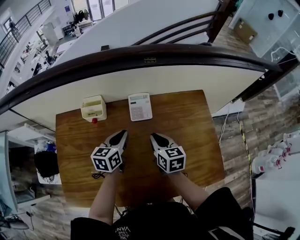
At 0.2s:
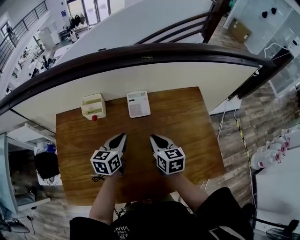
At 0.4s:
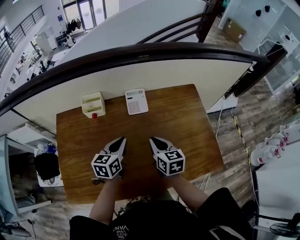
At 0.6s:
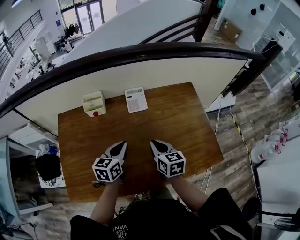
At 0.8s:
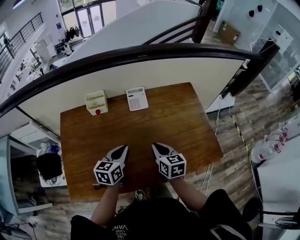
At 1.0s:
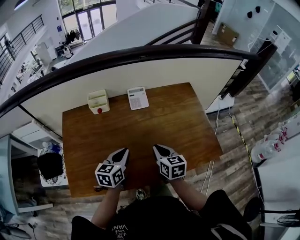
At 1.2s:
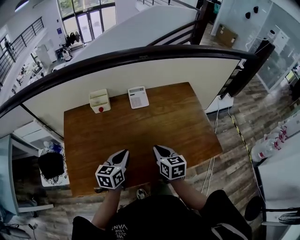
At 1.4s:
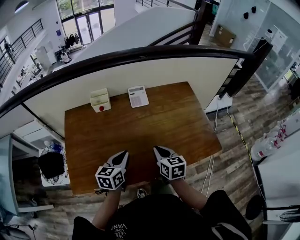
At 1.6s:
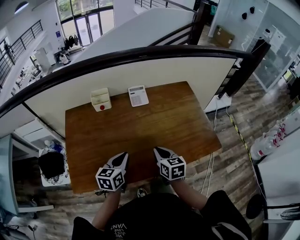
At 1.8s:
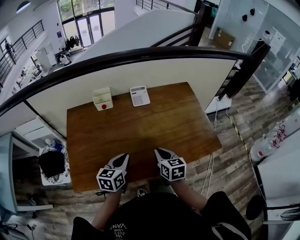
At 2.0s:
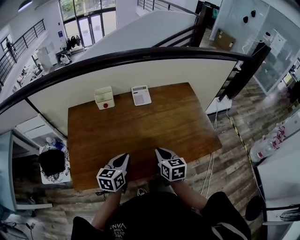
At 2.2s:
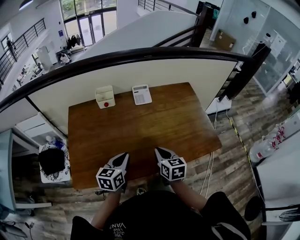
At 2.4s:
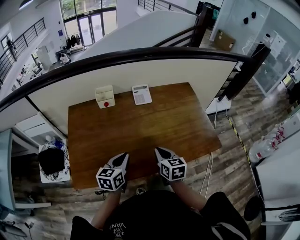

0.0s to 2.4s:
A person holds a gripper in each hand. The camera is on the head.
0.0s to 1.2s: The two grippers go some 20 cm backward.
1.2s to 2.4s: The two grippers go about 5 cm backward.

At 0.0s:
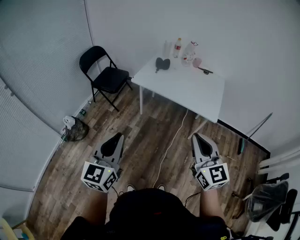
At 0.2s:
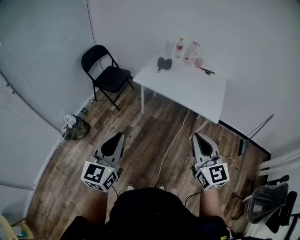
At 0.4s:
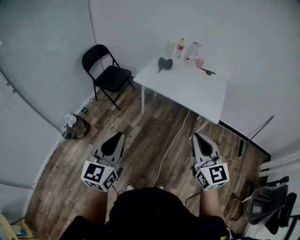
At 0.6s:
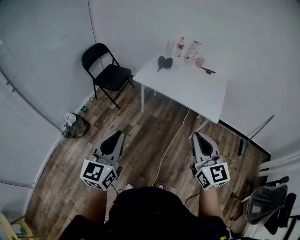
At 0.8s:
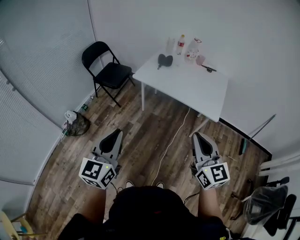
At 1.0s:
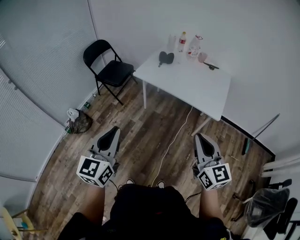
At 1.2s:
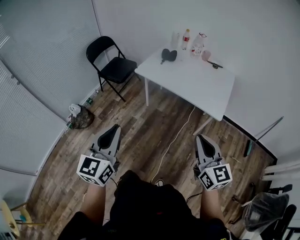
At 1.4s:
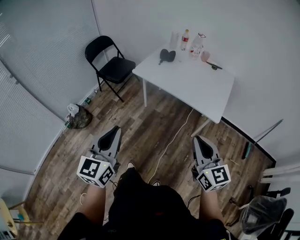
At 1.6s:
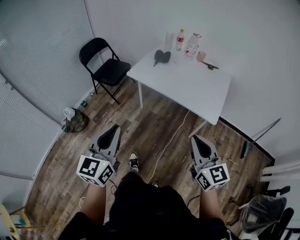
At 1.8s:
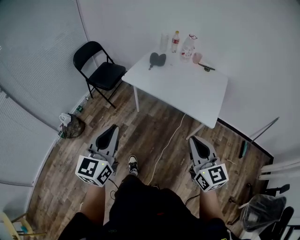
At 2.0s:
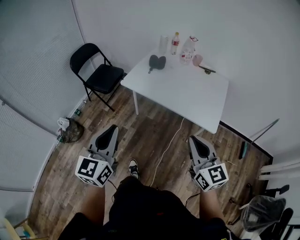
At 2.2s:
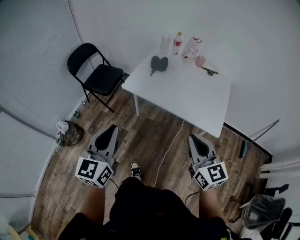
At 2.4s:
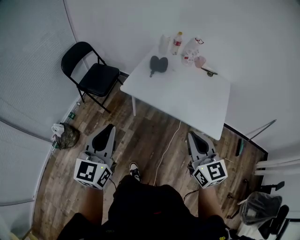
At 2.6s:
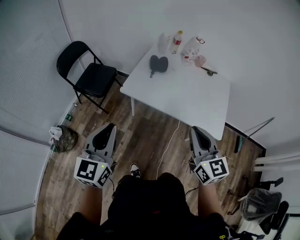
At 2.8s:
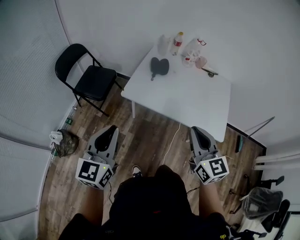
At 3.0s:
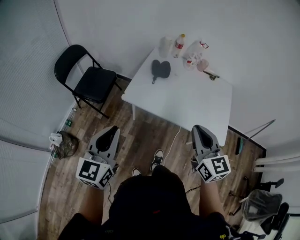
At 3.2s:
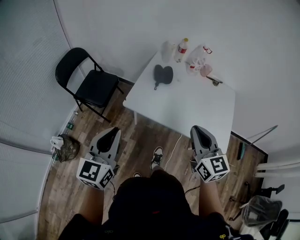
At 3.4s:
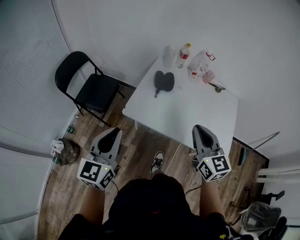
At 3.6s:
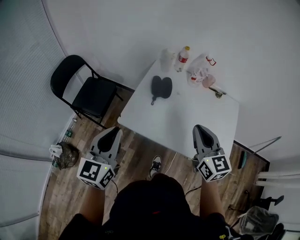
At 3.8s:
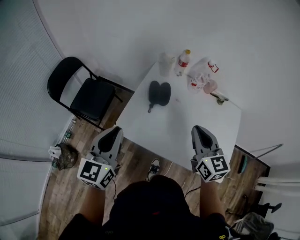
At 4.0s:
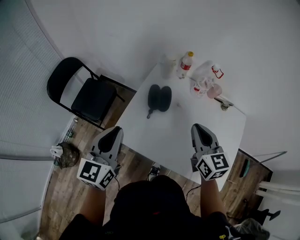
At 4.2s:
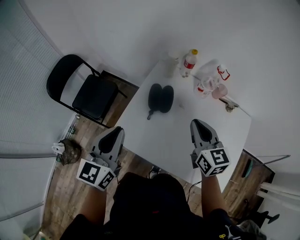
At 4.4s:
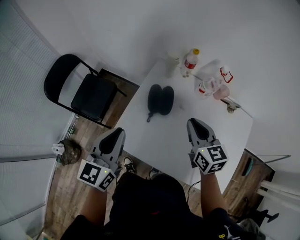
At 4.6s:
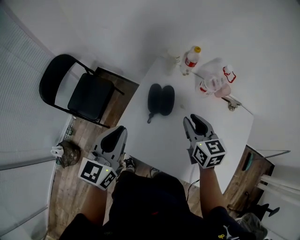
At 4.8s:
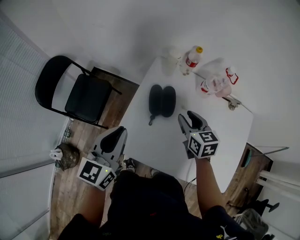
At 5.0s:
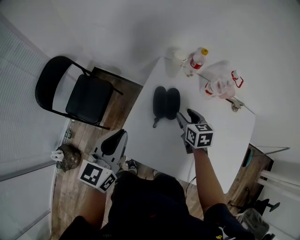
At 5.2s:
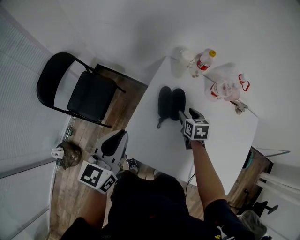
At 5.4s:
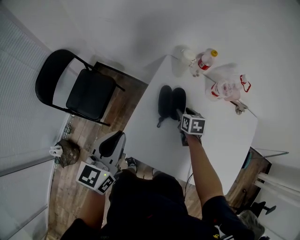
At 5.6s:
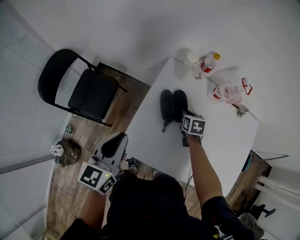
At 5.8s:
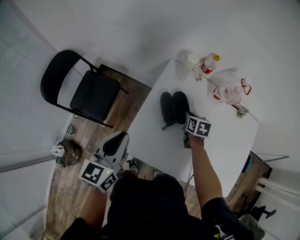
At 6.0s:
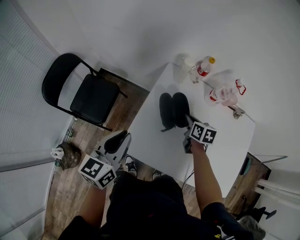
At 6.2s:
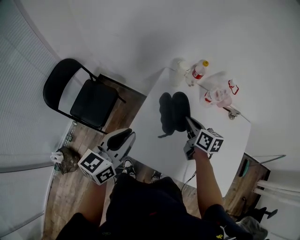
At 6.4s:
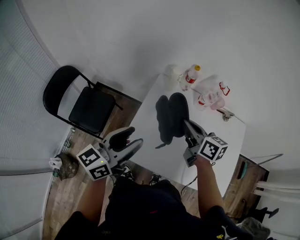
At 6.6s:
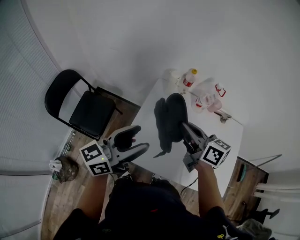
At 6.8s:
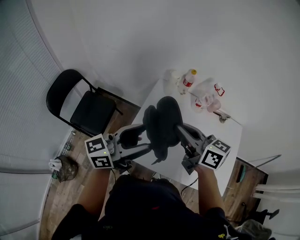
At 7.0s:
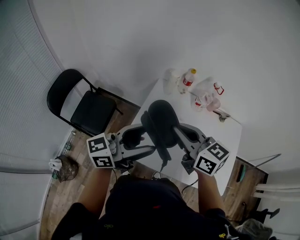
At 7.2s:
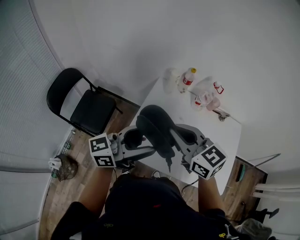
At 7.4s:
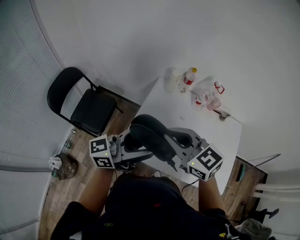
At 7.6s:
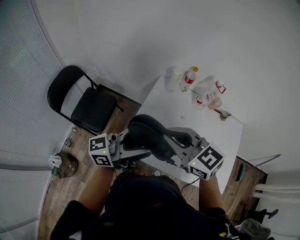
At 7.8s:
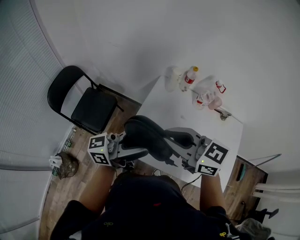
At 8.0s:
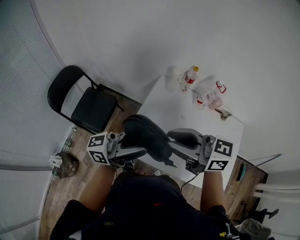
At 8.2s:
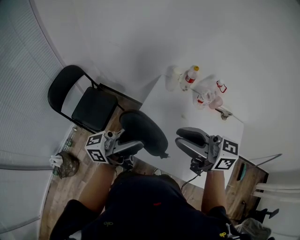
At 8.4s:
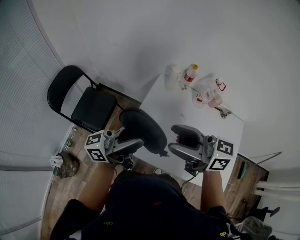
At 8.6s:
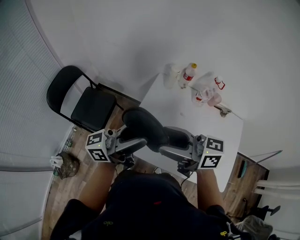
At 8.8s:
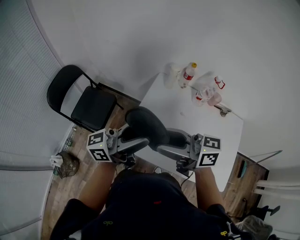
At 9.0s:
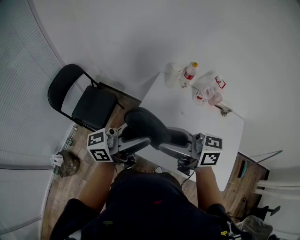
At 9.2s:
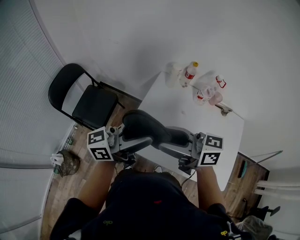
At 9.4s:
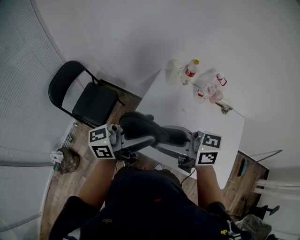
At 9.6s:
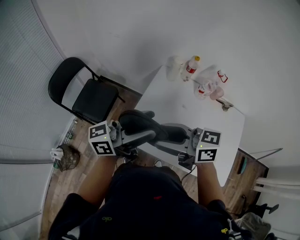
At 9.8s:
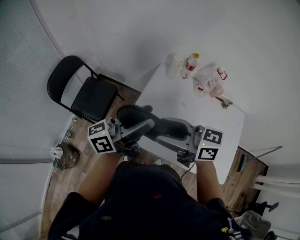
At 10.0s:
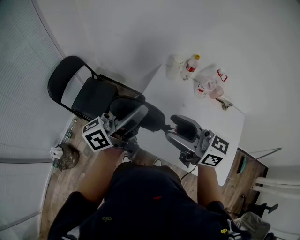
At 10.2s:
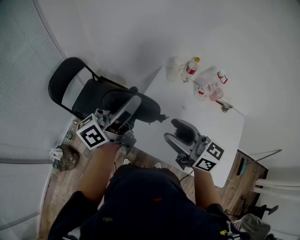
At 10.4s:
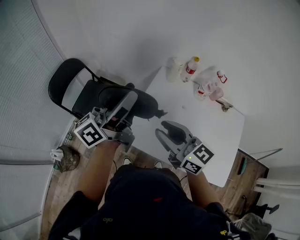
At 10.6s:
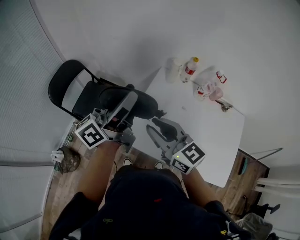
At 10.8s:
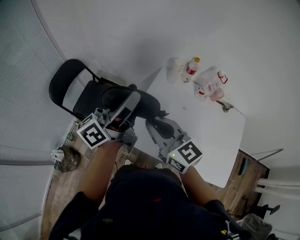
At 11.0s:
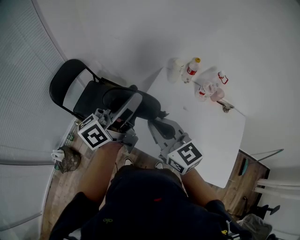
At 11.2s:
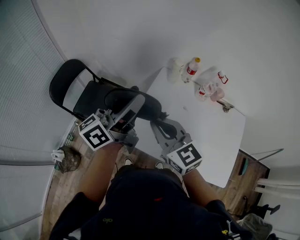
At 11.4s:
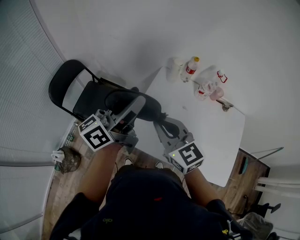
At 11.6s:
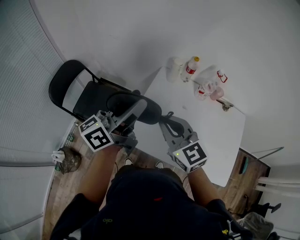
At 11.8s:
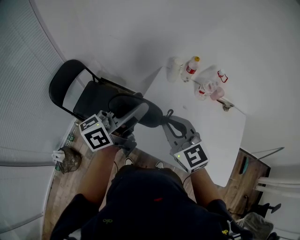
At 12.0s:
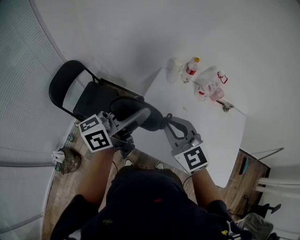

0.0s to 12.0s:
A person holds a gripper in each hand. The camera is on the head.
0.0s to 1.6s: The left gripper goes some 10 cm to the right and forward, while the right gripper moves to the right, downward and forward, roughly 15 cm.
1.6s to 3.0s: Both grippers travel together forward and to the left, approximately 35 cm.
3.0s to 4.4s: Both grippers travel together forward, some 40 cm.
4.4s to 6.0s: The left gripper travels to the left by about 5 cm. The right gripper is displaced downward and forward by some 20 cm, turns by about 30 degrees, and opens and closes again.
6.0s to 7.6s: The right gripper shifts about 35 cm upward and backward, and turns by approximately 60 degrees; the left gripper heads upward, to the right and backward, covering about 20 cm, points its fingers approximately 40 degrees further upward, and opens up.
7.6s to 9.0s: The right gripper changes its angle by roughly 40 degrees, and opens up.
9.0s to 10.4s: The left gripper shifts by approximately 10 cm, and changes its angle by about 20 degrees. Meanwhile the right gripper rotates about 30 degrees, and closes up.
10.4s to 12.0s: The left gripper shifts by roughly 5 cm; the right gripper swivels about 30 degrees, and closes.

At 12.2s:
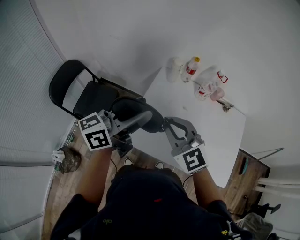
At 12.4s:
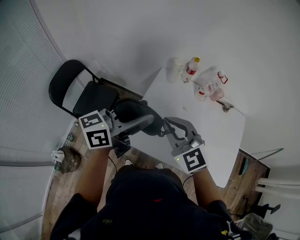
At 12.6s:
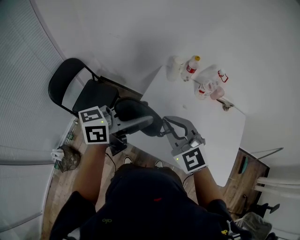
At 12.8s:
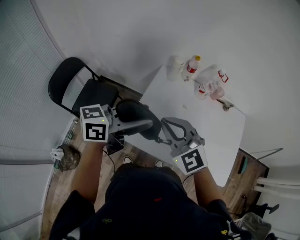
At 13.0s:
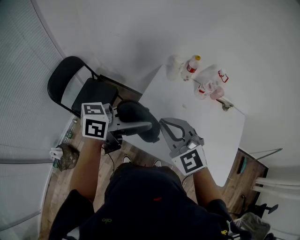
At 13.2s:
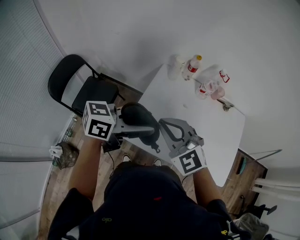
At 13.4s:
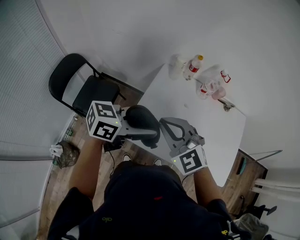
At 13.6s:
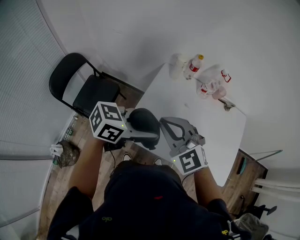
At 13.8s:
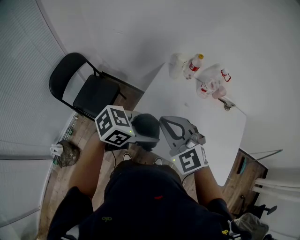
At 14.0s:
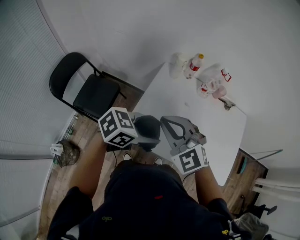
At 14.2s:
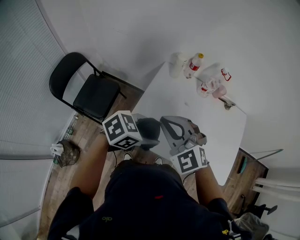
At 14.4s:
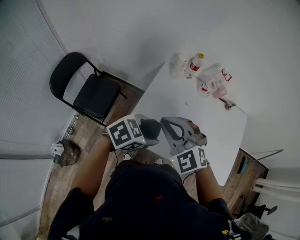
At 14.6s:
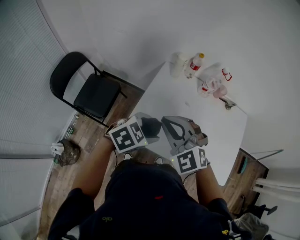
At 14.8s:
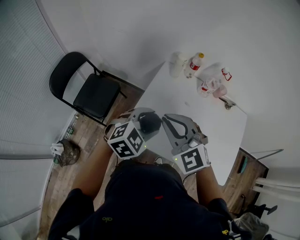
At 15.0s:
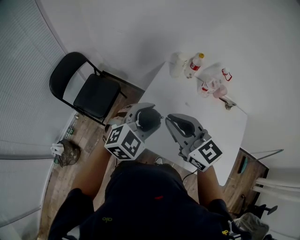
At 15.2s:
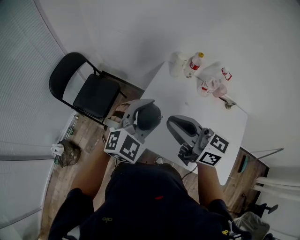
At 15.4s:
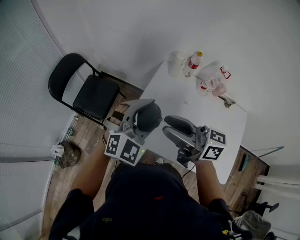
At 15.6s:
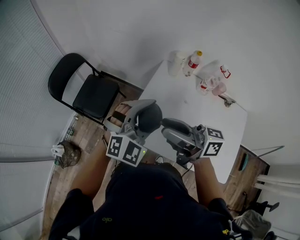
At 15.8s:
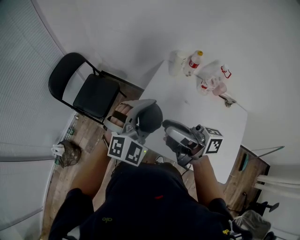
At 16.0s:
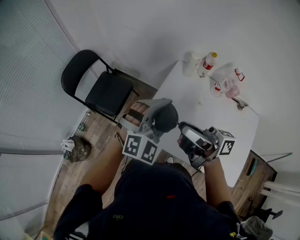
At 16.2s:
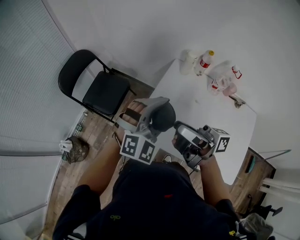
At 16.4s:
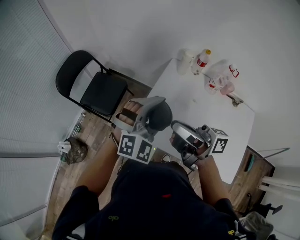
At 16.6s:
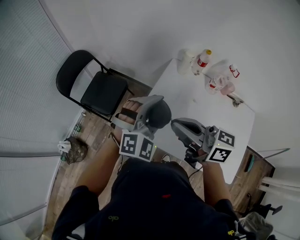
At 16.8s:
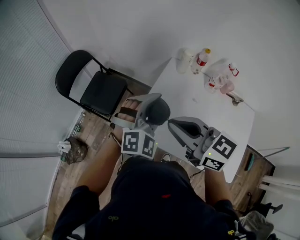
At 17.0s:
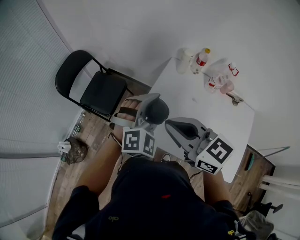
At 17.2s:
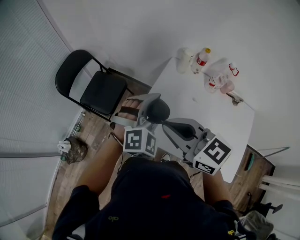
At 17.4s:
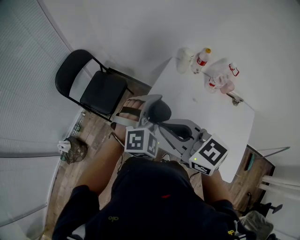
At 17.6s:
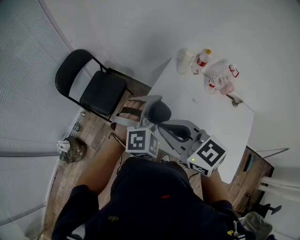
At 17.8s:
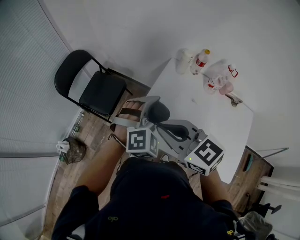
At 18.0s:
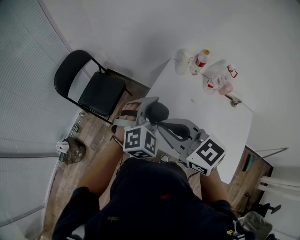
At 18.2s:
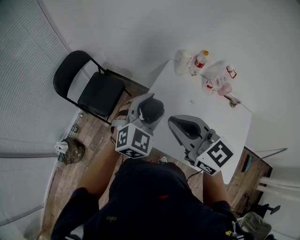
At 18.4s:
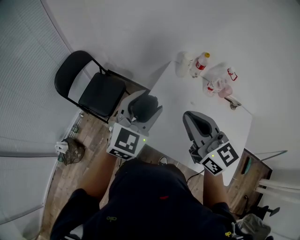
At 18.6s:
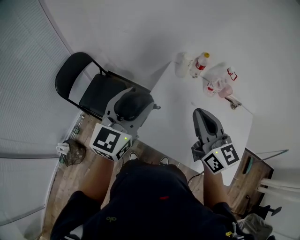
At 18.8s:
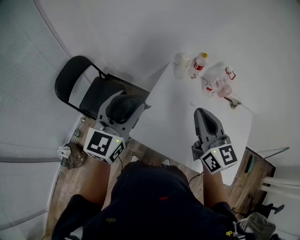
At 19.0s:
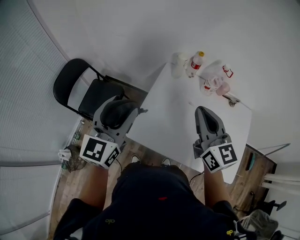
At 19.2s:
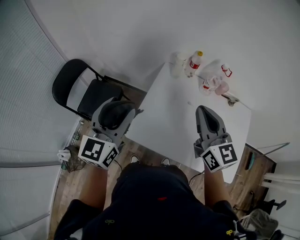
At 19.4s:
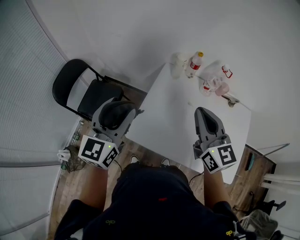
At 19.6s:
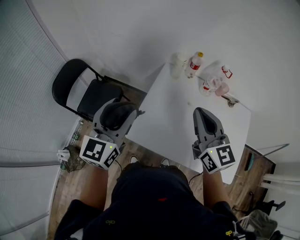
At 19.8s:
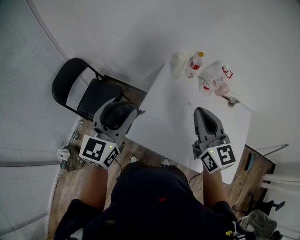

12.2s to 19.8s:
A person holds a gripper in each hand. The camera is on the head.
12.2s to 13.8s: The left gripper heads downward, covering roughly 10 cm, and angles its fingers downward, by roughly 40 degrees.
13.8s to 15.2s: The right gripper rolls clockwise, seen from behind, by roughly 50 degrees, while the left gripper shifts by approximately 5 cm, and changes its angle by approximately 60 degrees.
15.2s to 16.8s: The right gripper opens, then closes again.
16.8s to 18.2s: The left gripper changes its angle by about 20 degrees.
18.2s to 19.8s: The left gripper moves to the left and upward, approximately 10 cm, and changes its angle by about 40 degrees, while the right gripper travels to the right and forward by some 10 cm, and rotates roughly 30 degrees.

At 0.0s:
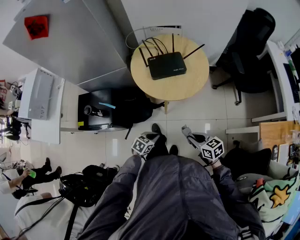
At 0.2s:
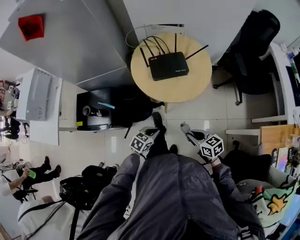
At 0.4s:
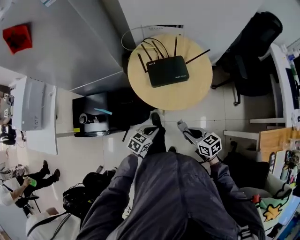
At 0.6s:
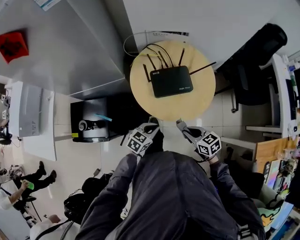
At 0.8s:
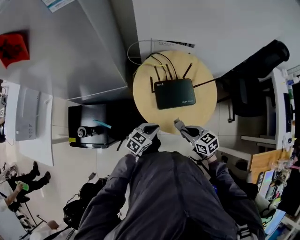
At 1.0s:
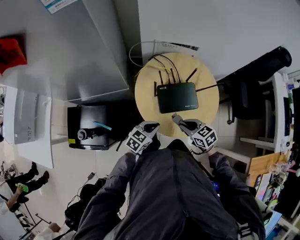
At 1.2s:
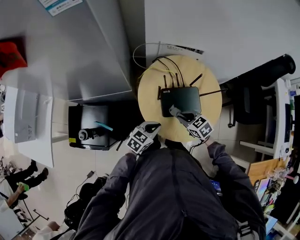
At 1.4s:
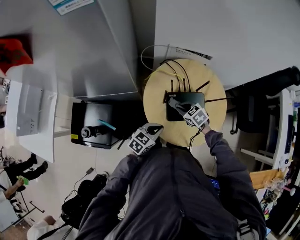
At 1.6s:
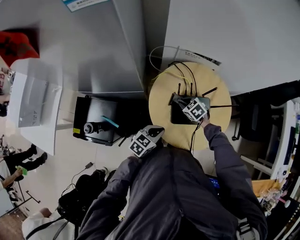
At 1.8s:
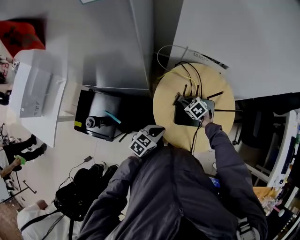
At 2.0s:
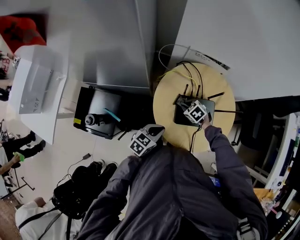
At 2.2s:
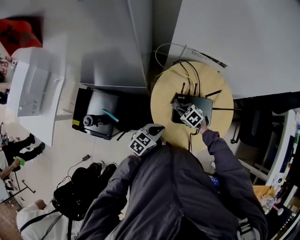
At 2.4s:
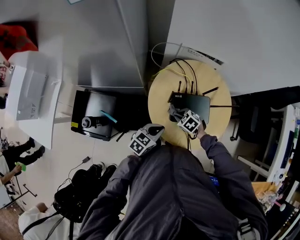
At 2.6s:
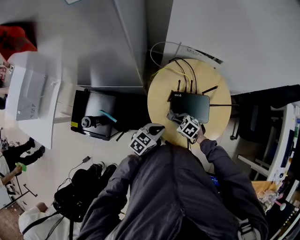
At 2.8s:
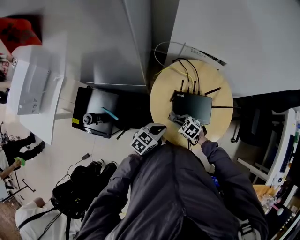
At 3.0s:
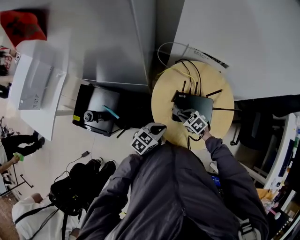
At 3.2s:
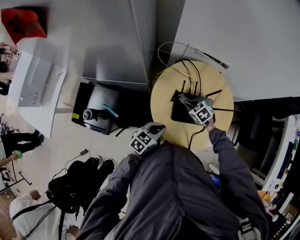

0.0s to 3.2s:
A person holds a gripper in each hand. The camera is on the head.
0.0s to 1.6s: The right gripper heads forward, covering roughly 50 cm, and turns by roughly 40 degrees; the left gripper goes about 35 cm forward.
